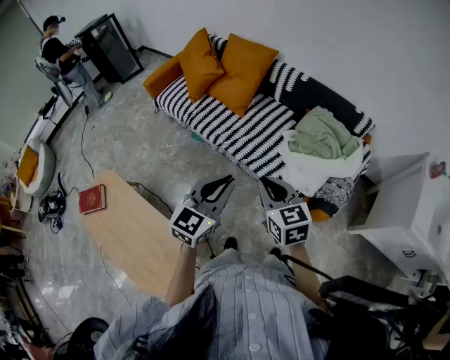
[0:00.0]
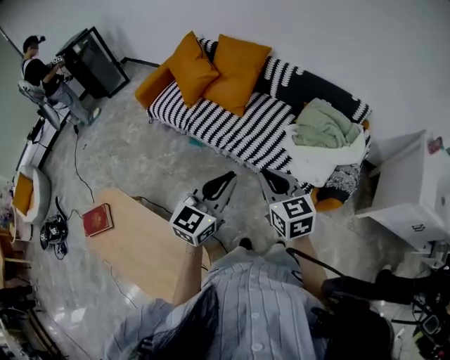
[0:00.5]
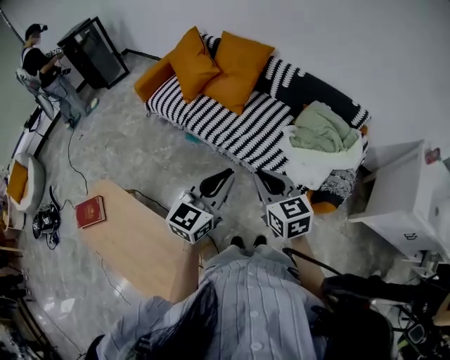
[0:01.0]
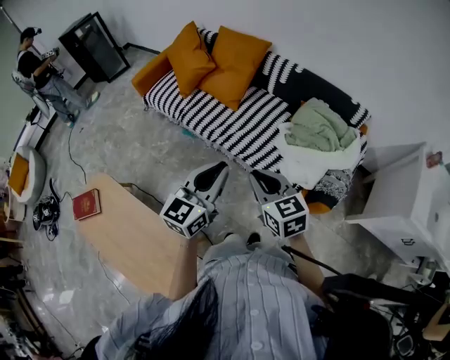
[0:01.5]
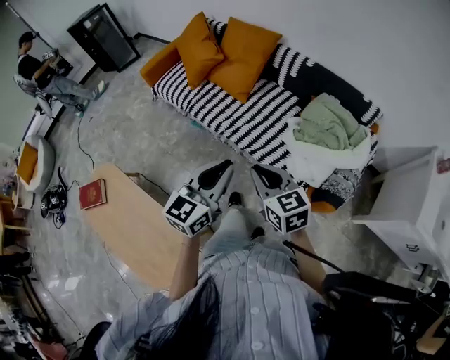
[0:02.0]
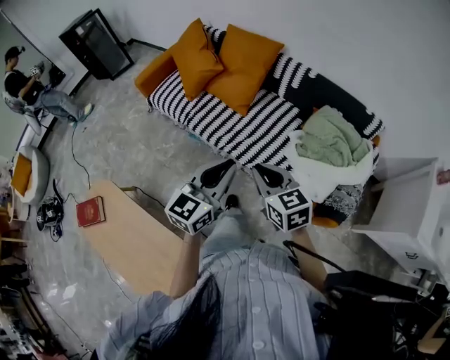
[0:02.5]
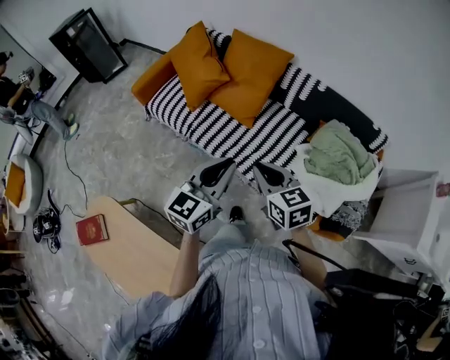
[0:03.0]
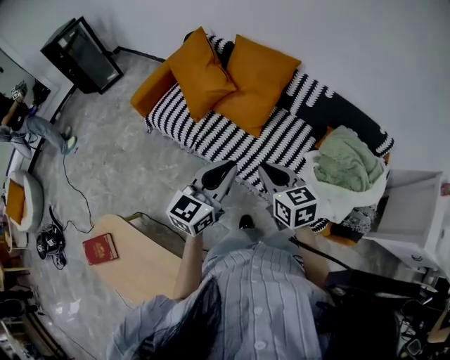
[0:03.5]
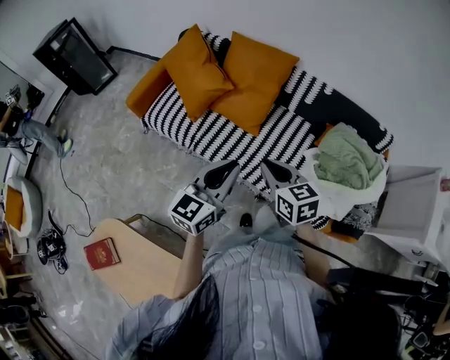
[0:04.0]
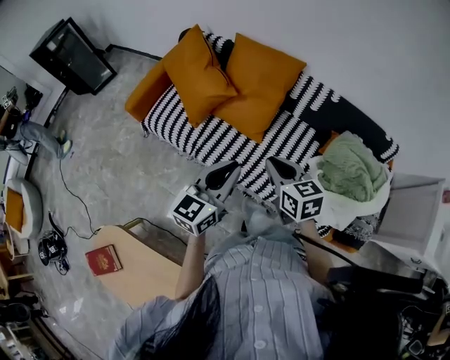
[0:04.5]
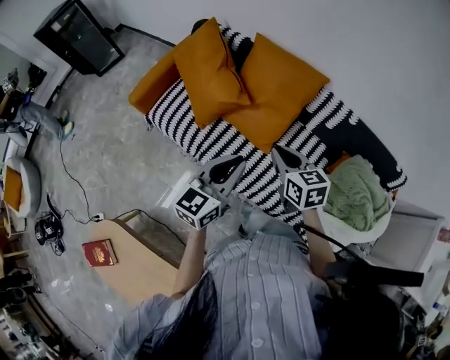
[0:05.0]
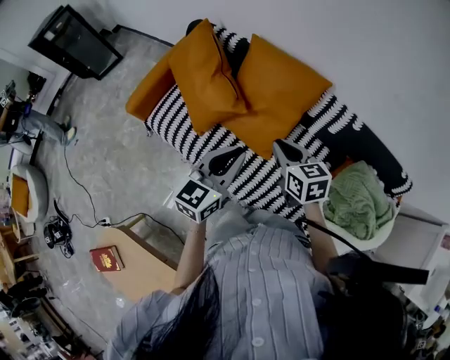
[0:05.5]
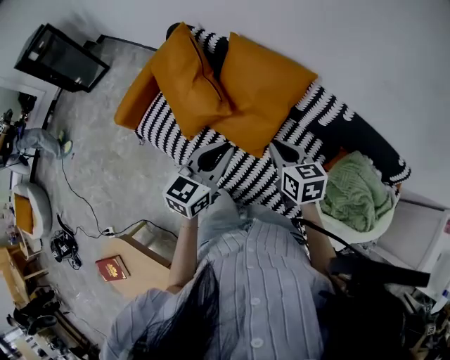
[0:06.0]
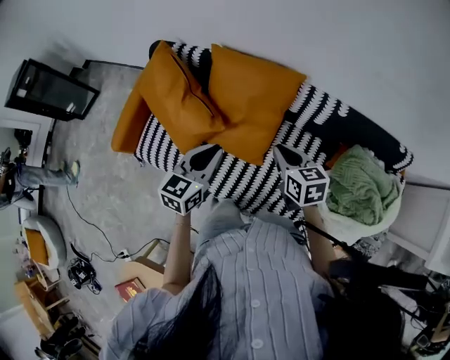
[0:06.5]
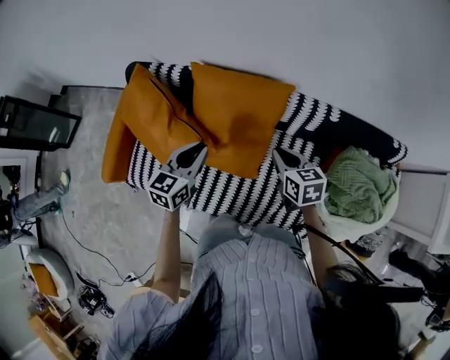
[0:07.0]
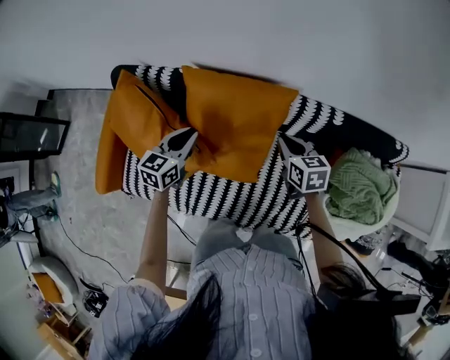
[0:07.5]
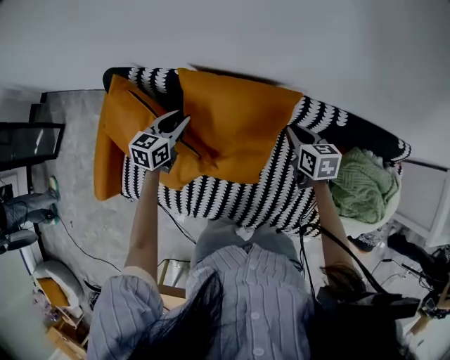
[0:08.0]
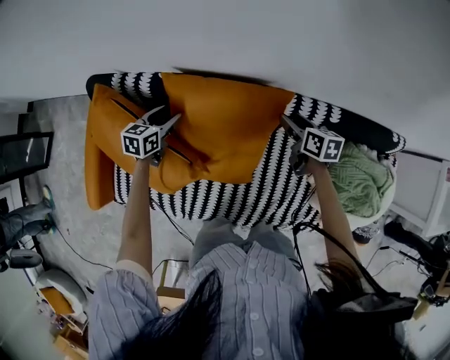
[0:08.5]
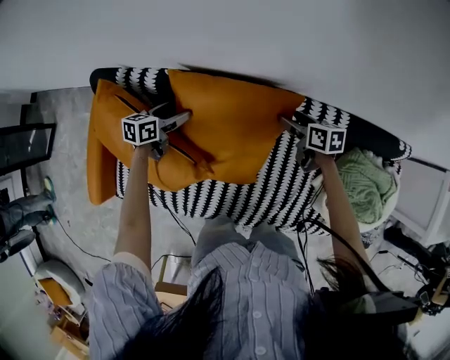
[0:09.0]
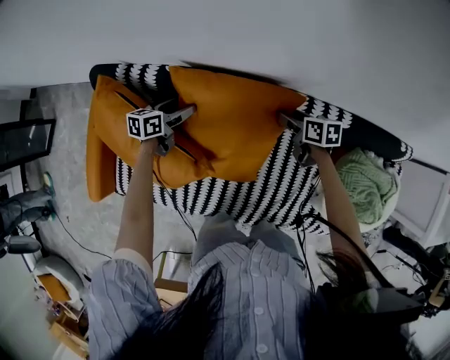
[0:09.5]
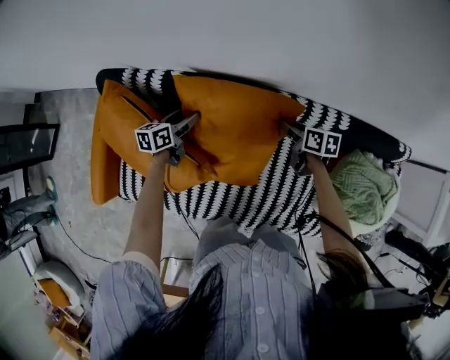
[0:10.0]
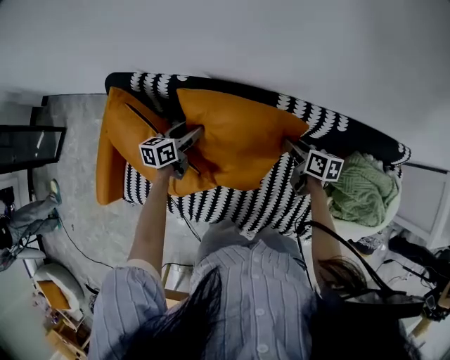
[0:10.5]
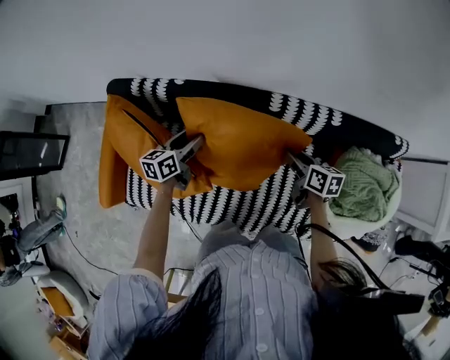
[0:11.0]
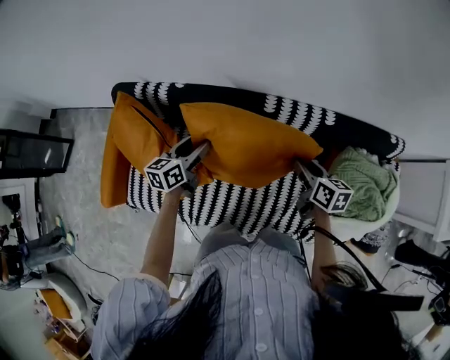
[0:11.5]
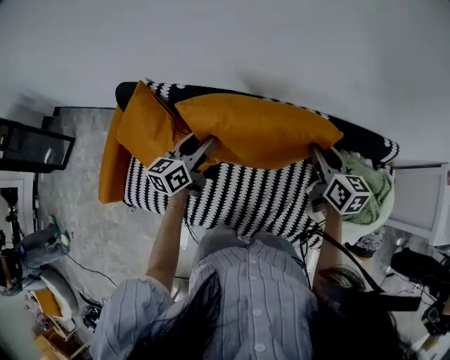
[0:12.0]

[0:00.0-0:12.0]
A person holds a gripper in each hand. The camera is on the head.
0:00.0 to 0:02.0: The left gripper moves some 10 cm to the left and comes back.
0:02.0 to 0:04.0: The two grippers go some 35 cm forward and to the left.
0:04.0 to 0:06.0: The two grippers go roughly 30 cm forward.
0:06.0 to 0:08.0: The left gripper shifts about 40 cm forward, downward and to the left, and swivels approximately 20 degrees. Meanwhile the right gripper heads forward and downward, covering some 25 cm, and swivels some 30 degrees.
0:08.0 to 0:10.0: Both grippers travel together downward, about 10 cm. The left gripper swivels about 20 degrees, and opens. The right gripper rotates approximately 20 degrees, and opens, then closes again.
0:10.0 to 0:12.0: Both grippers move upward, backward and to the right, some 30 cm. The left gripper rotates approximately 20 degrees; the right gripper rotates some 30 degrees.

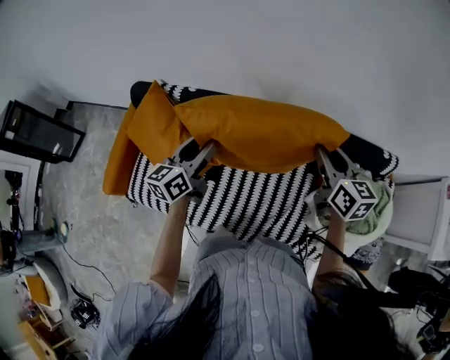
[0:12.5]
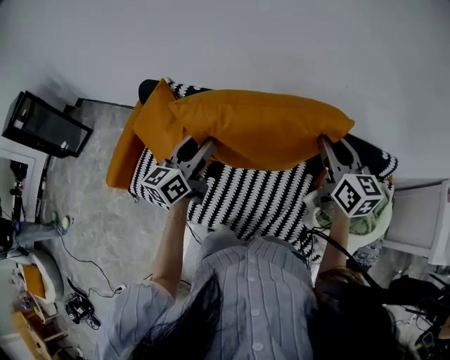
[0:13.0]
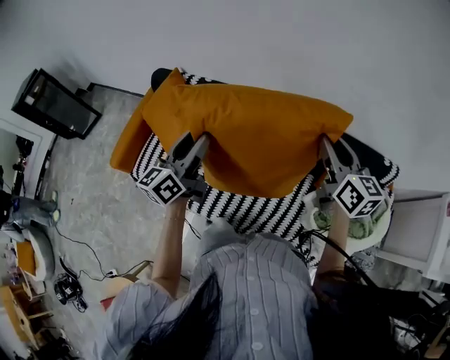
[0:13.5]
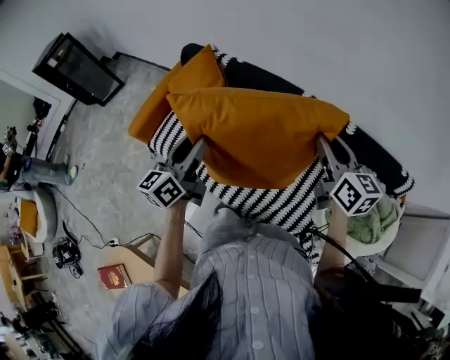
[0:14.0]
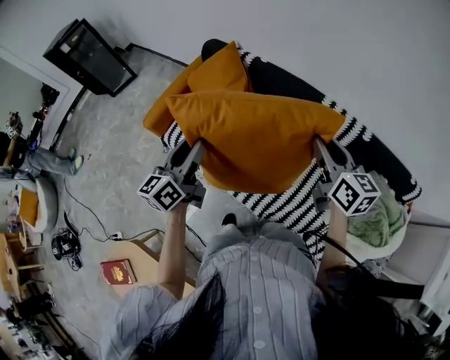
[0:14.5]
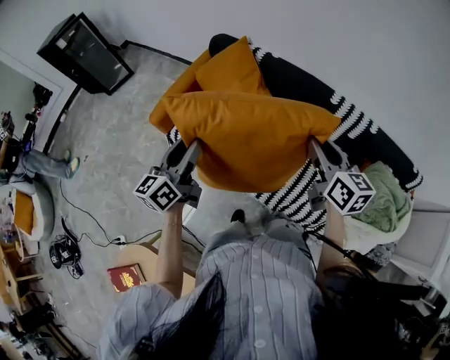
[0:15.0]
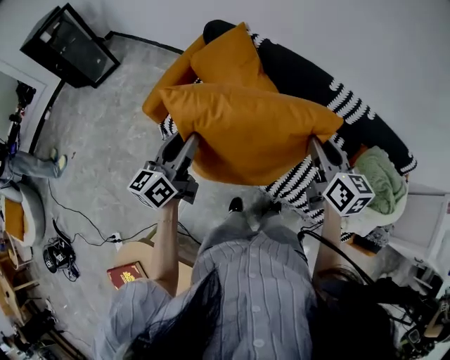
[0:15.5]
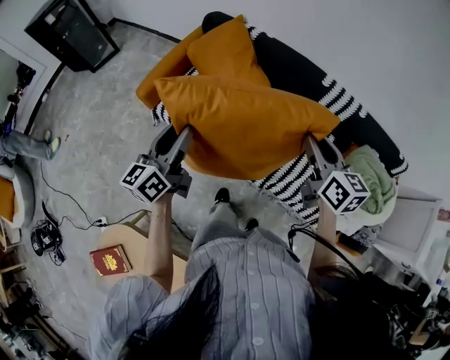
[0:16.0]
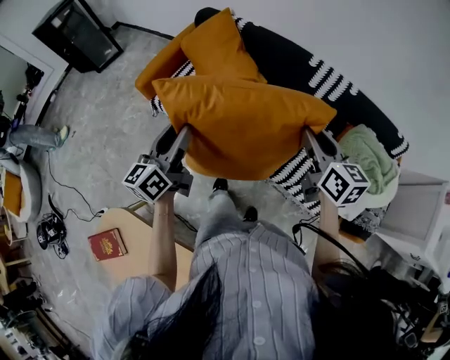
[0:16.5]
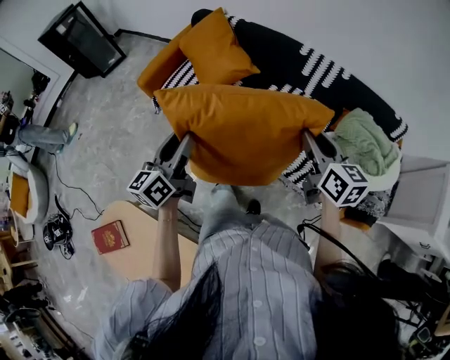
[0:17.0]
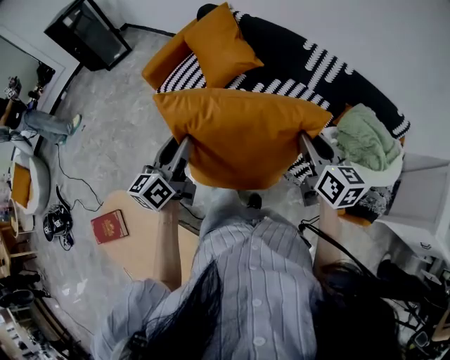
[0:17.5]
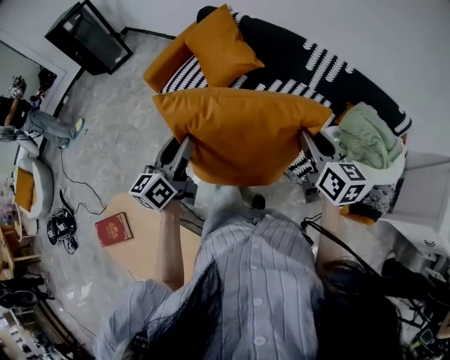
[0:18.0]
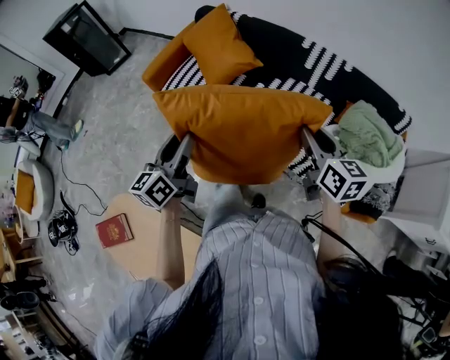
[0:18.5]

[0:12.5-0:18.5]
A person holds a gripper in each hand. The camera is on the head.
0:12.5 to 0:14.5: The left gripper changes place by about 30 cm, and swivels about 30 degrees. Meanwhile the right gripper changes place by approximately 20 cm, and changes its angle by some 20 degrees.
0:14.5 to 0:16.5: Both grippers travel together backward, some 20 cm.
0:16.5 to 0:18.5: The two grippers go about 15 cm backward.

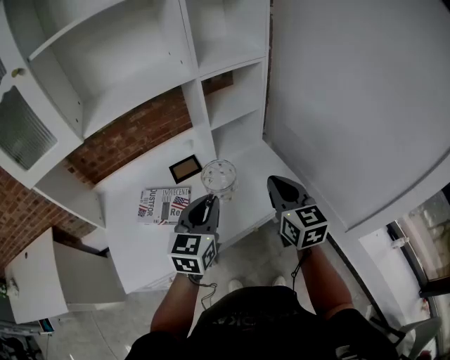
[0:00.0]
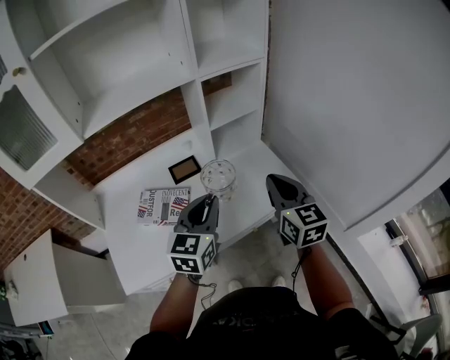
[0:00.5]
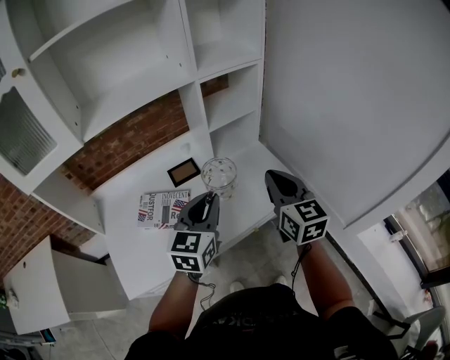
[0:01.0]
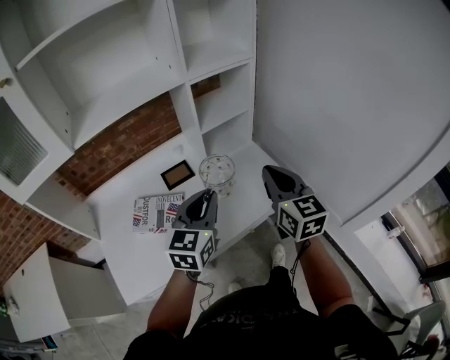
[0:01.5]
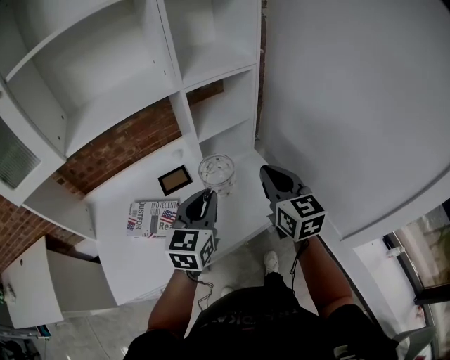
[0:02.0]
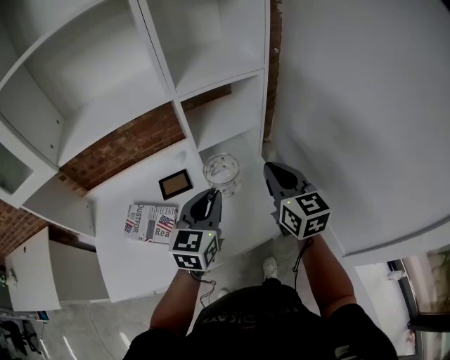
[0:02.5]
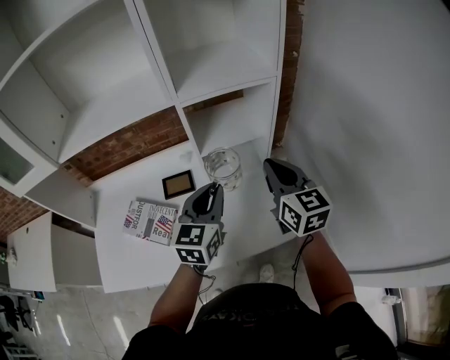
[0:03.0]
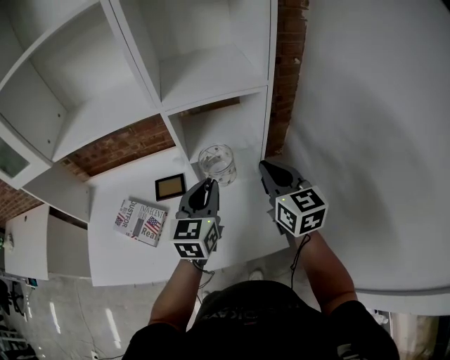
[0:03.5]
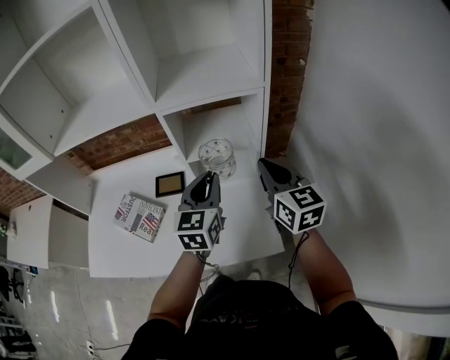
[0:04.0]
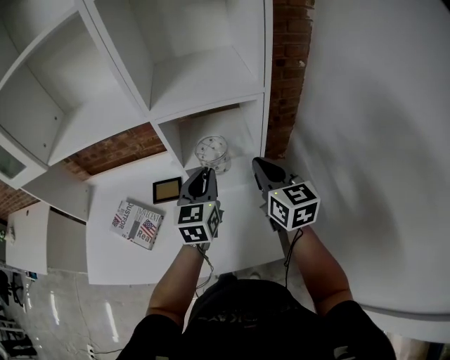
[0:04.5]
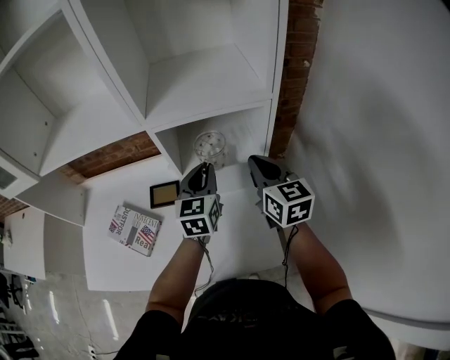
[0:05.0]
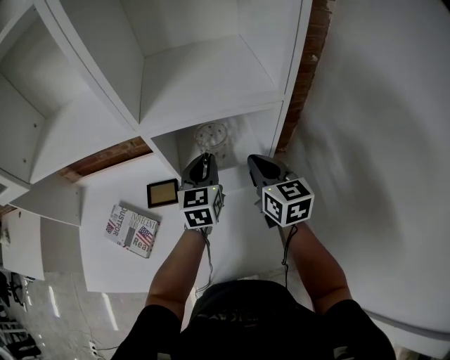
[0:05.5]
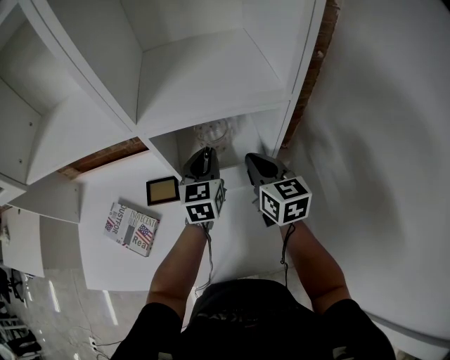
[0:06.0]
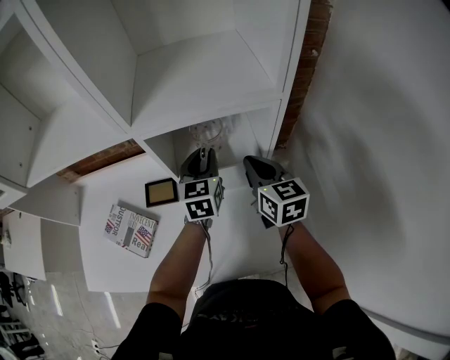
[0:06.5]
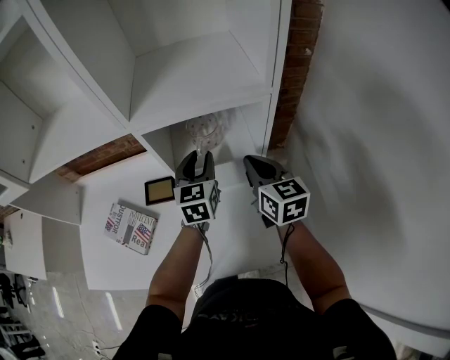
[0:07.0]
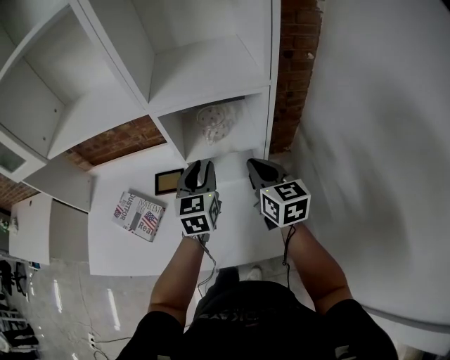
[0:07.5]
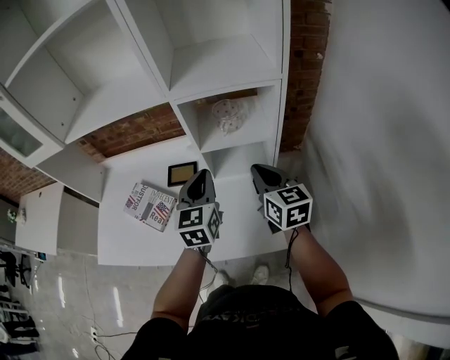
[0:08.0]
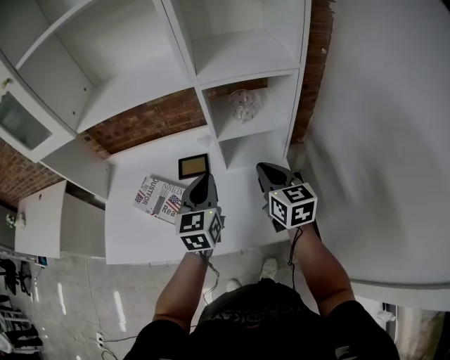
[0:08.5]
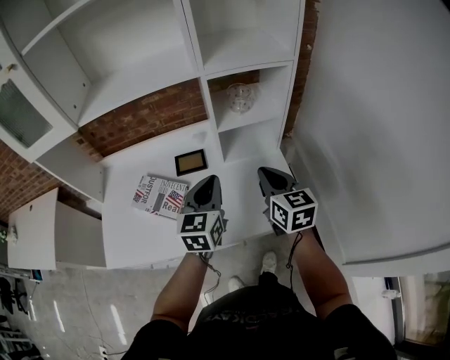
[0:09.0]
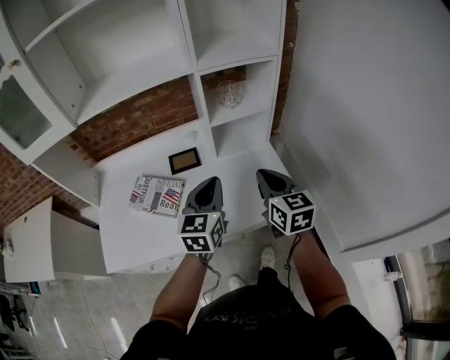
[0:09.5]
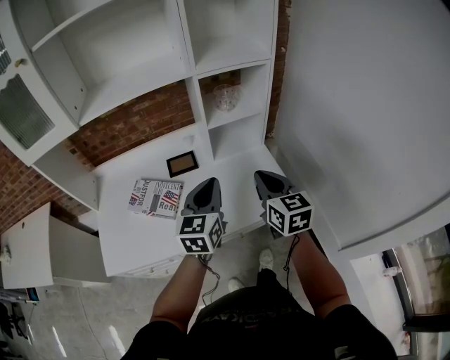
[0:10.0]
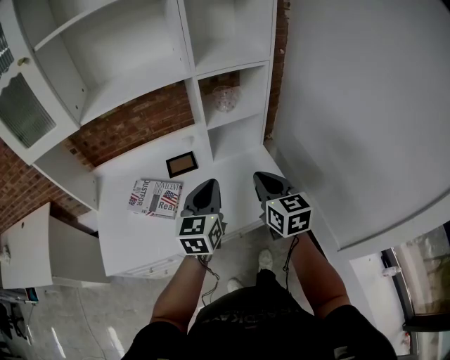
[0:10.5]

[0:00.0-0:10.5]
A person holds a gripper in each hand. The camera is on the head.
0:00.0 to 0:02.0: Both grippers move forward, roughly 10 cm.
0:02.0 to 0:04.0: The two grippers go about 25 cm forward and to the right. The left gripper changes its angle by about 30 degrees. Meanwhile the right gripper changes its angle by roughly 20 degrees.
0:04.0 to 0:06.5: The left gripper moves forward, about 20 cm. Meanwhile the right gripper is displaced forward and downward by roughly 15 cm.
0:06.5 to 0:08.5: Both grippers travel together backward and to the left, roughly 20 cm.
0:08.5 to 0:10.5: Both grippers move backward, about 15 cm.
